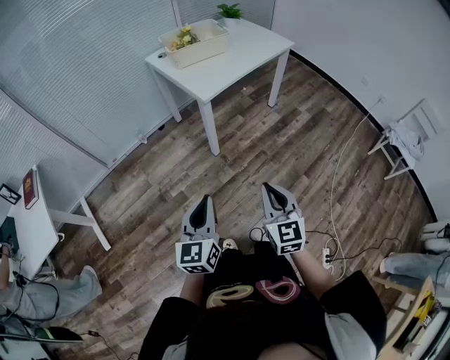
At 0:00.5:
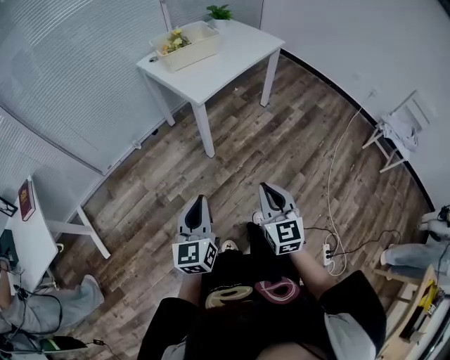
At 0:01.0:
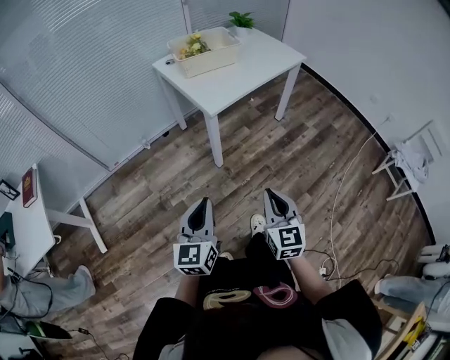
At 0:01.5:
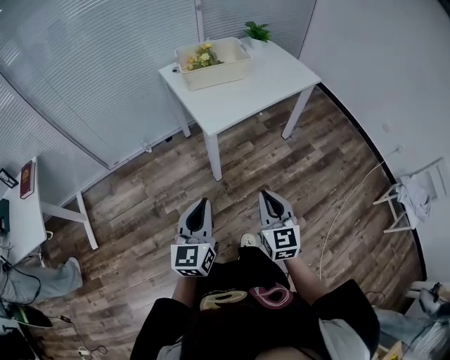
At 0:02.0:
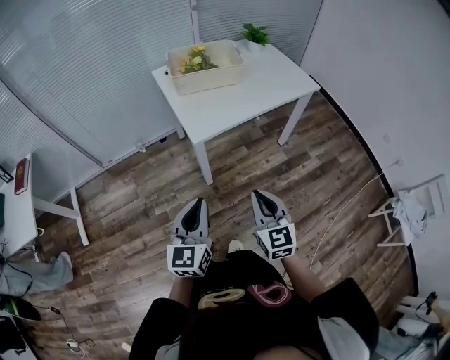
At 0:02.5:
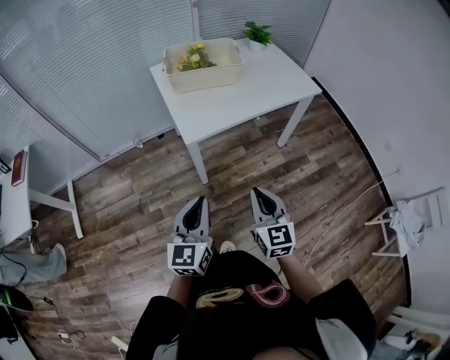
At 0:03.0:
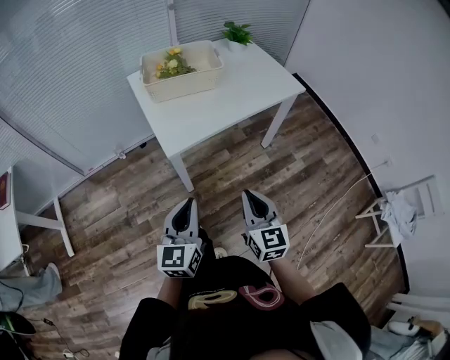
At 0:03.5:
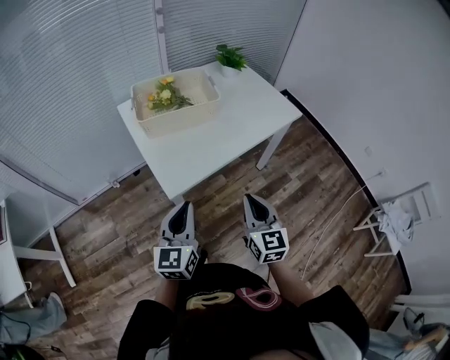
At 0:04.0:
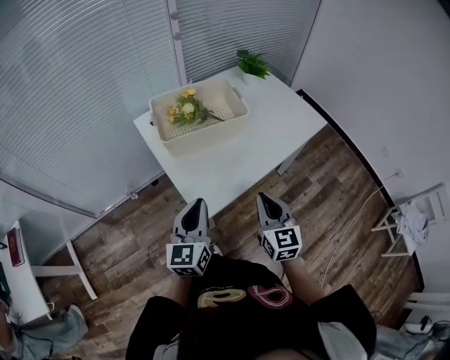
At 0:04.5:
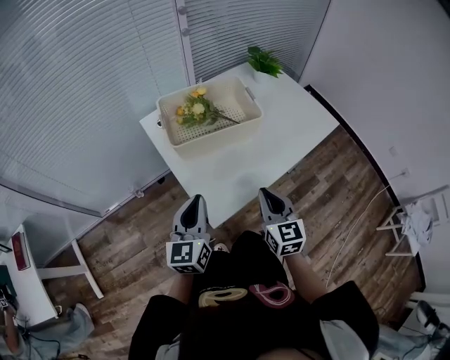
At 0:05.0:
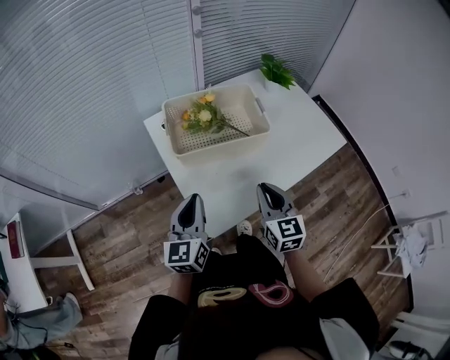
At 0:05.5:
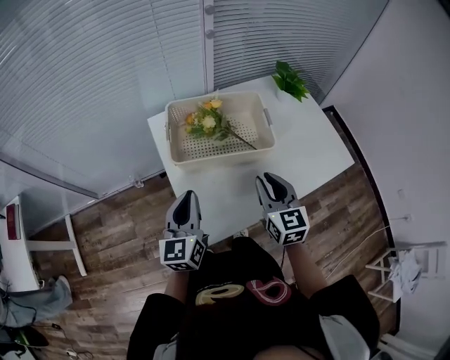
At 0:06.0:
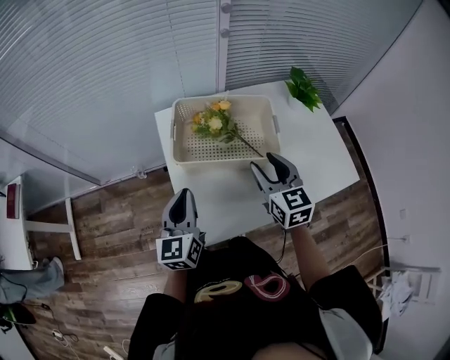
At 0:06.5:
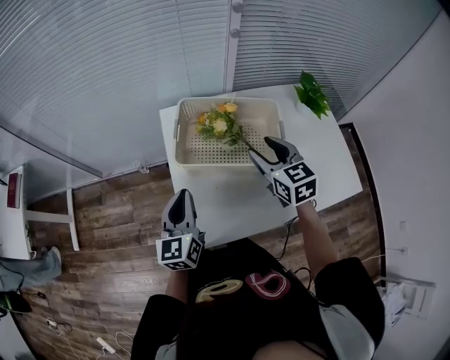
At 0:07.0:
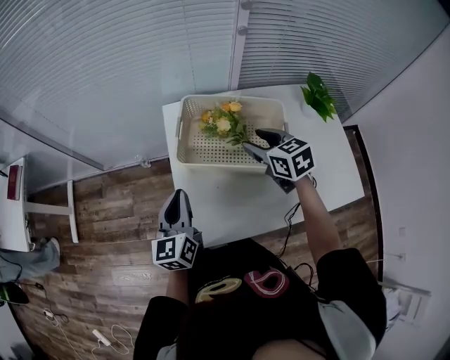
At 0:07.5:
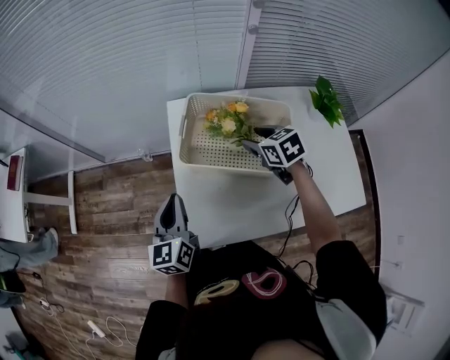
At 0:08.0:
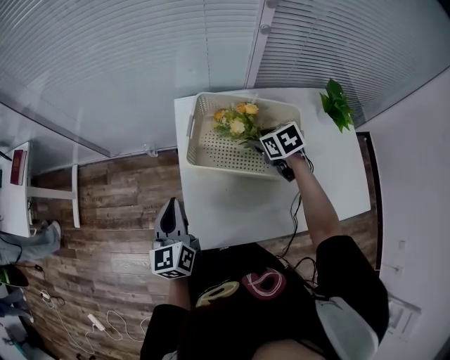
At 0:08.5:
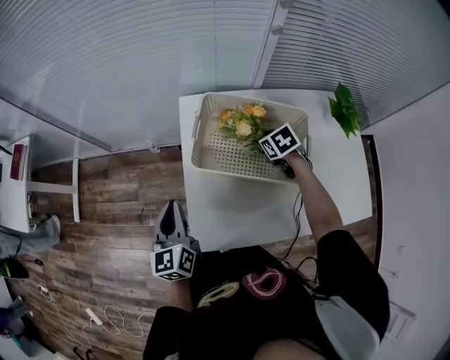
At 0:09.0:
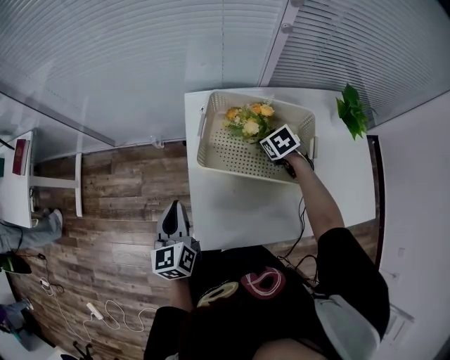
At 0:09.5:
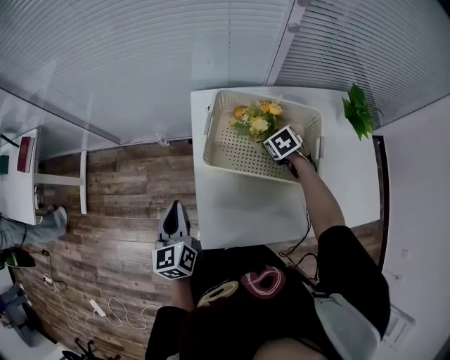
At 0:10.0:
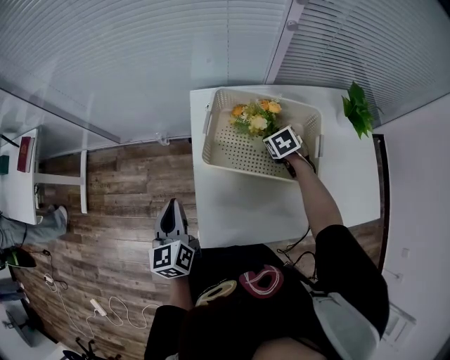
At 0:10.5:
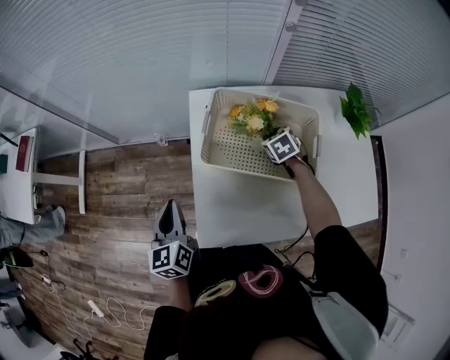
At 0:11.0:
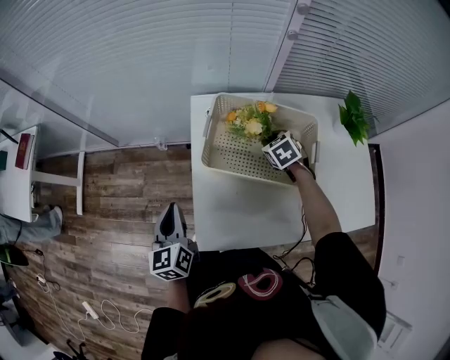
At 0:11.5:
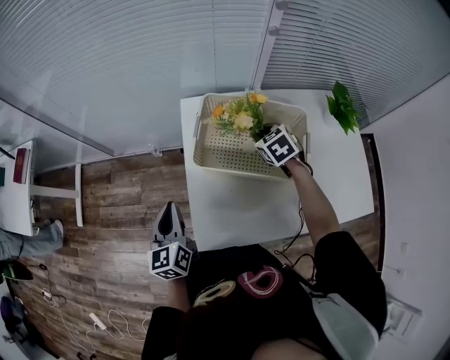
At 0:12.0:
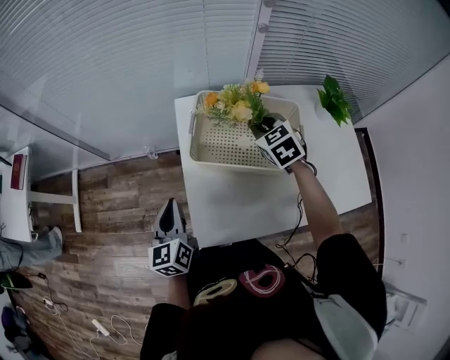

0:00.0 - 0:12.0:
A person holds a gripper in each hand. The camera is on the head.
0:00.0 - 0:02.0: The two grippers go roughly 25 cm forward and to the right.
0:02.0 - 0:04.0: Both grippers travel together forward, some 30 cm.
0:04.0 - 0:06.0: The right gripper changes place by some 25 cm, swivels some 30 degrees, and opens its fingers; the left gripper ends up roughly 15 cm from where it was, and swivels approximately 30 degrees.
0:06.0 - 0:08.0: The left gripper moves to the left, some 5 cm, while the right gripper heads forward and downward, covering some 20 cm, and tilts its fingers some 40 degrees downward.
0:08.0 - 0:10.0: The right gripper goes approximately 10 cm downward.
0:10.0 - 0:12.0: The right gripper is displaced upward by roughly 15 cm, and turns by about 30 degrees.

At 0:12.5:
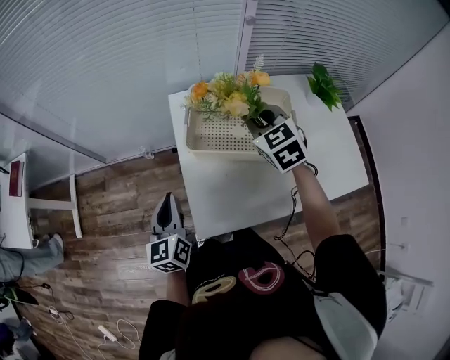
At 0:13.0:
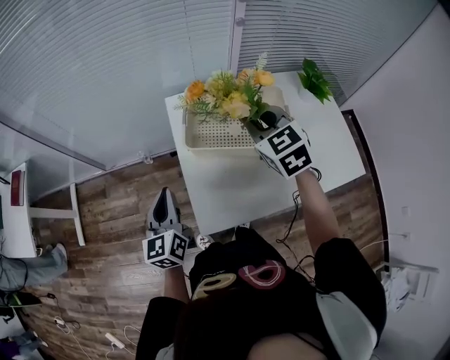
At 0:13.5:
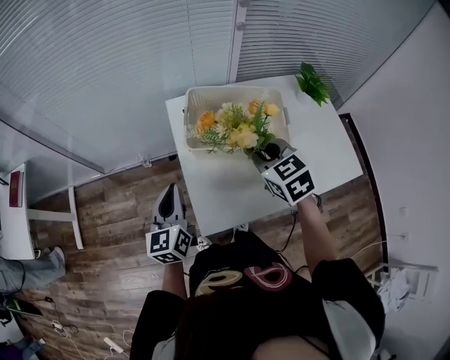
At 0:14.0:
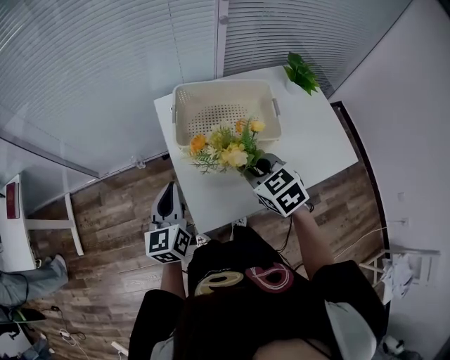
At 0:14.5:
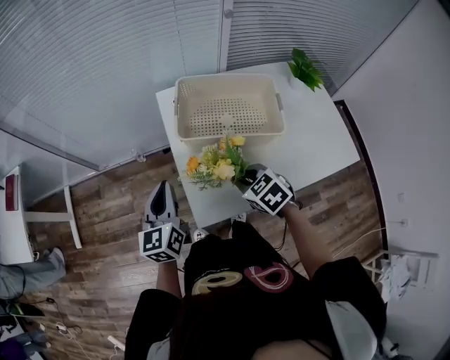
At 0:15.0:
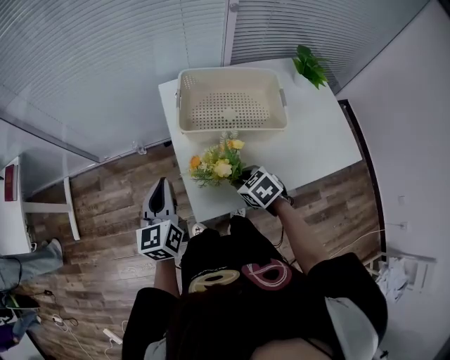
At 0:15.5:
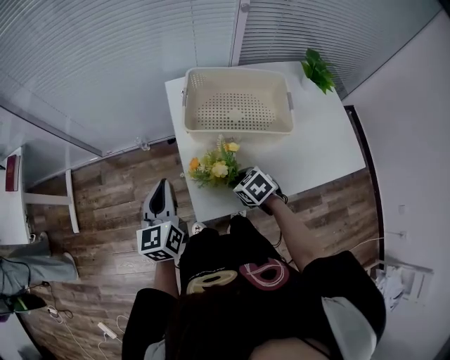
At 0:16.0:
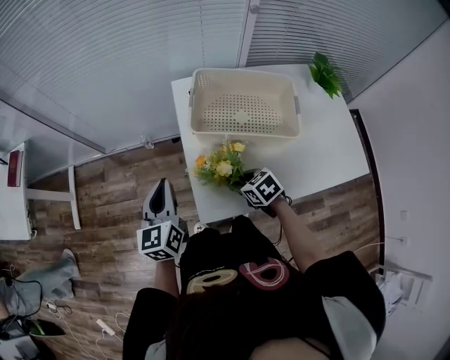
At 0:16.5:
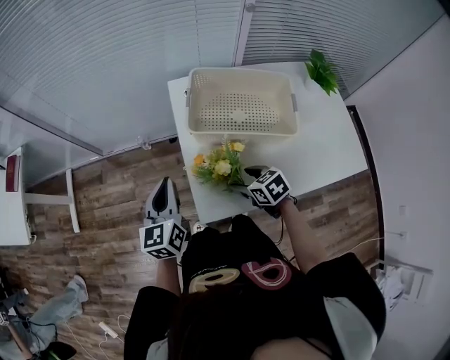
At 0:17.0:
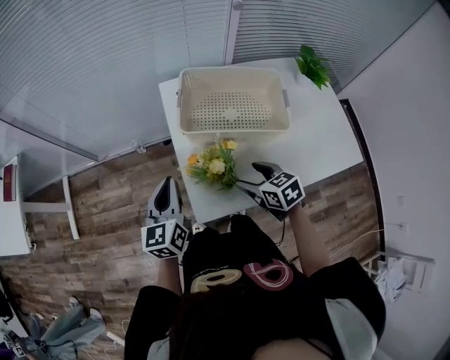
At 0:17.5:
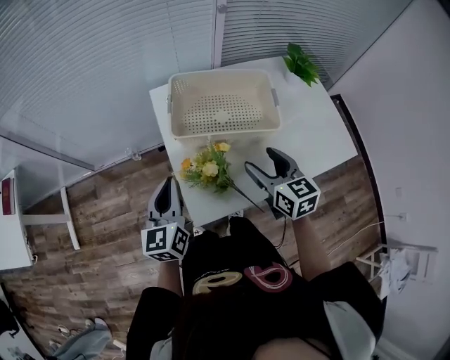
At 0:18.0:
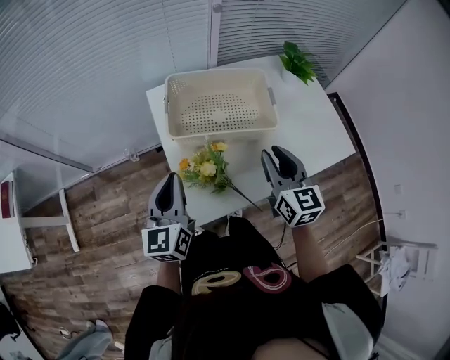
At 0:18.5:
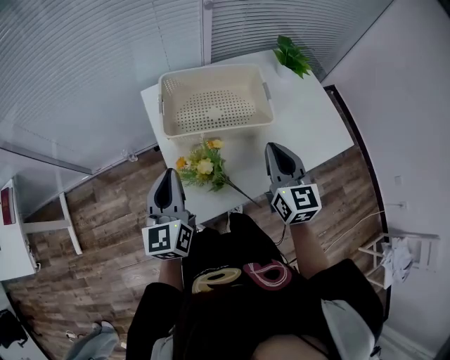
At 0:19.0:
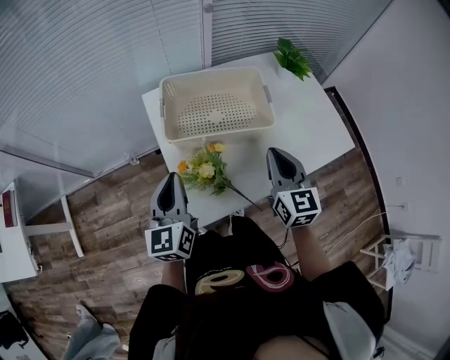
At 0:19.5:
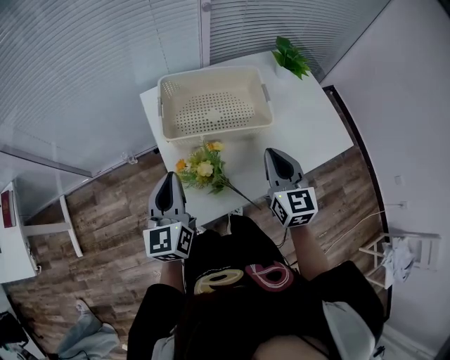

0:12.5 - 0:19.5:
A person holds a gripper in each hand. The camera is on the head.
0:12.5 - 0:14.5: The right gripper heads backward and downward, covering about 25 cm, and turns by some 30 degrees.
0:14.5 - 0:16.0: The right gripper travels downward by about 10 cm.
0:16.0 - 0:17.5: The left gripper moves to the right, some 5 cm, while the right gripper heads upward and to the right, covering about 20 cm, angles its fingers upward, by some 30 degrees, and opens up.
0:17.5 - 0:19.5: The right gripper moves roughly 5 cm, turns by some 20 degrees, and closes its fingers.

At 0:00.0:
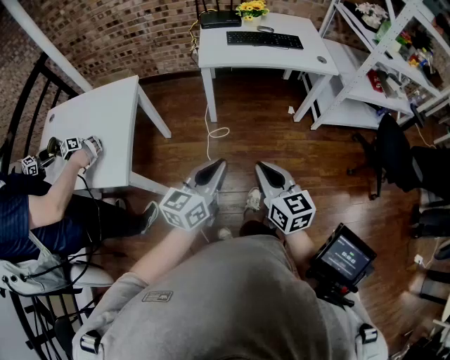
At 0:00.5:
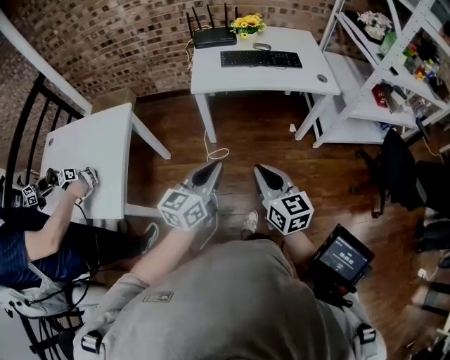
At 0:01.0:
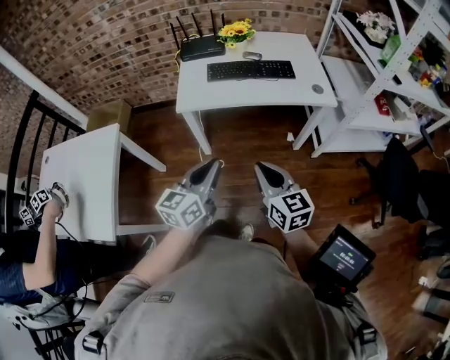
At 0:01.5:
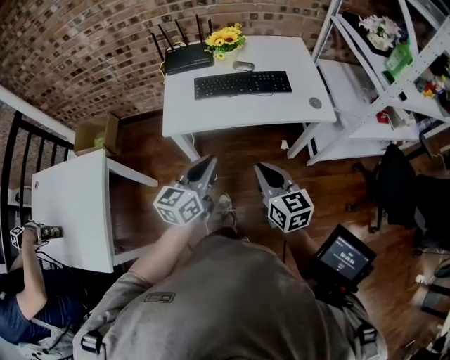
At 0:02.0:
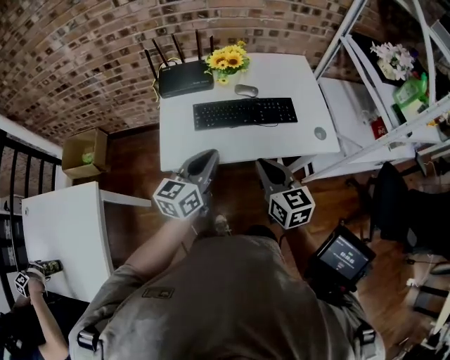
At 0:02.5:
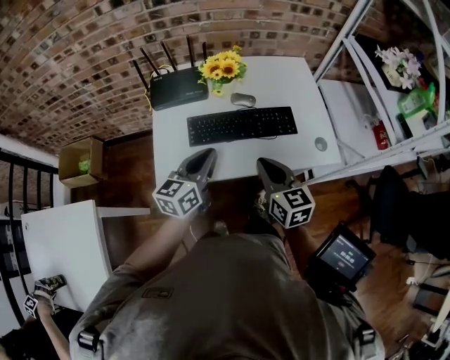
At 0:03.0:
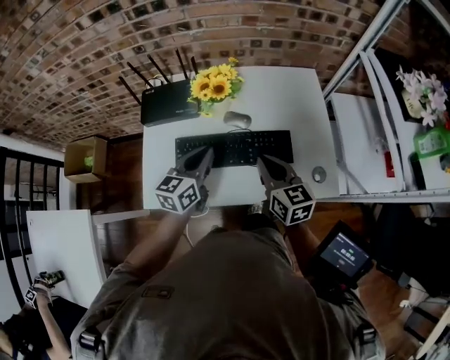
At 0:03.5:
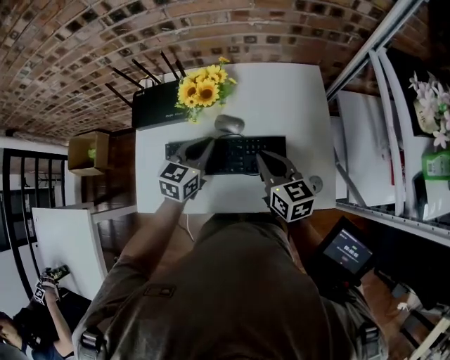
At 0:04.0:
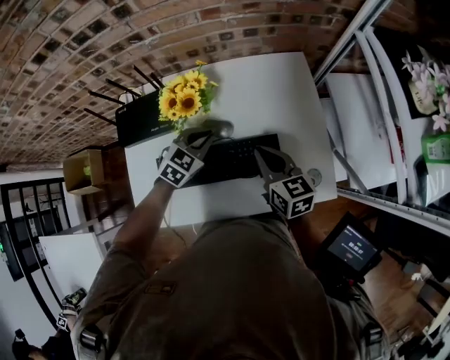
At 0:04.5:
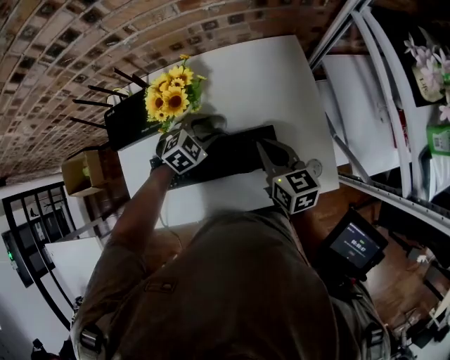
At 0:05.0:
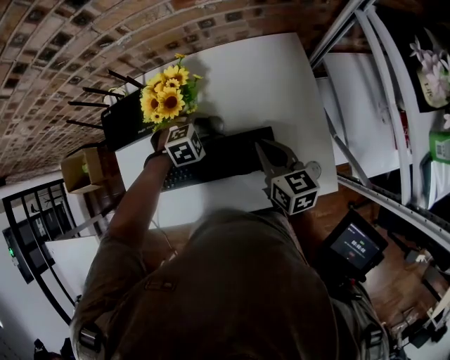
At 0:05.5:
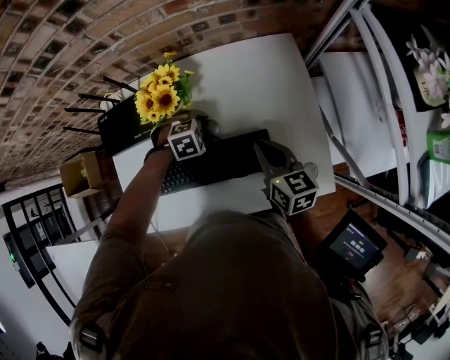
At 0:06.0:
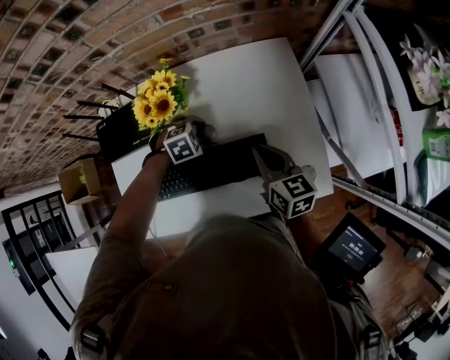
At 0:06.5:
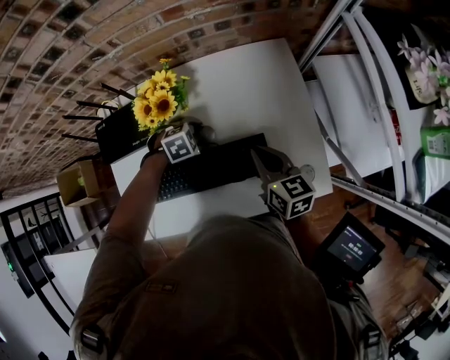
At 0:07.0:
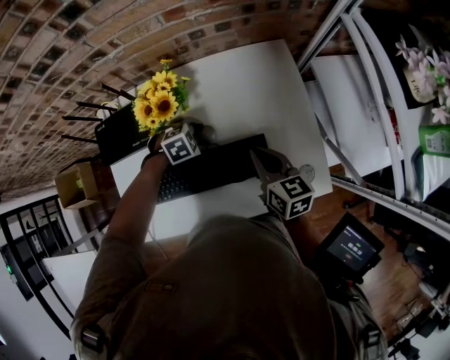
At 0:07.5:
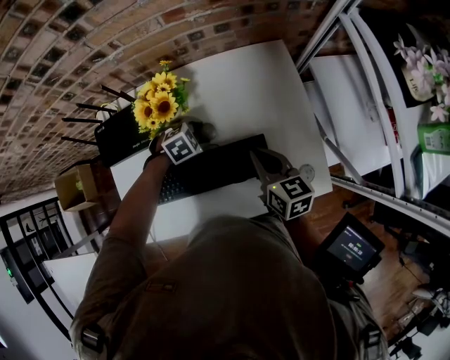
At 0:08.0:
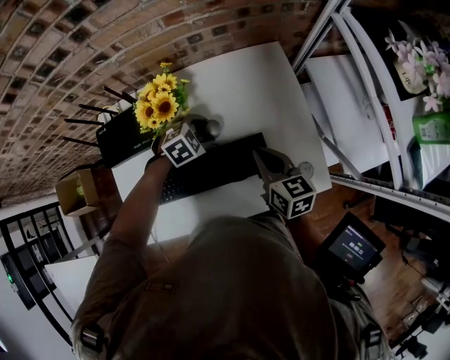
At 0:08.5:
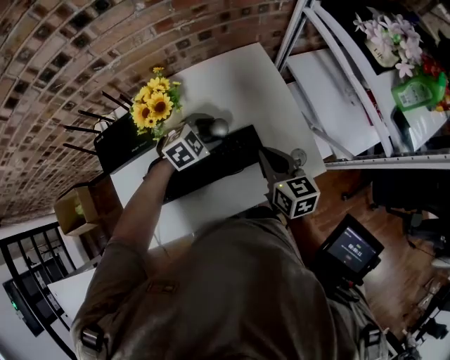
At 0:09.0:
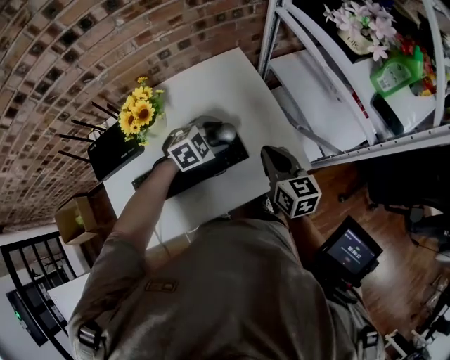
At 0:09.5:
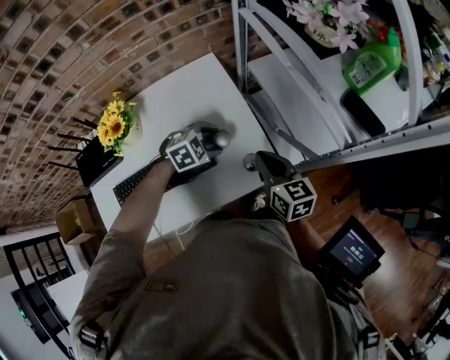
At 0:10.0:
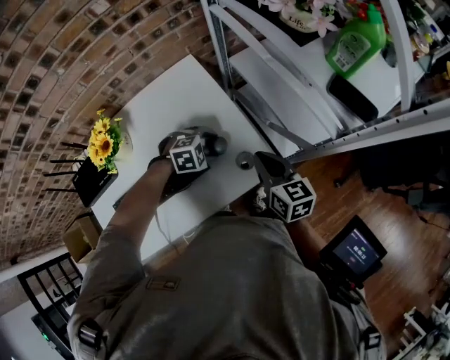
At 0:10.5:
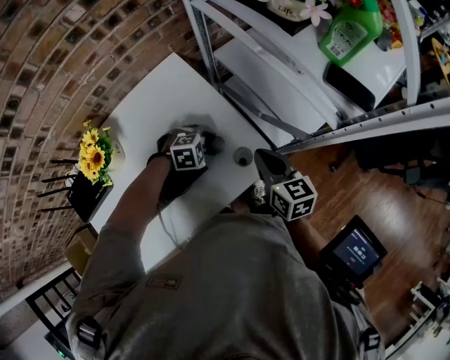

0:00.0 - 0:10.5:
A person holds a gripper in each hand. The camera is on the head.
0:00.0 - 0:02.0: Both grippers are carried forward, about 50 cm.
0:02.0 - 0:04.0: The left gripper travels forward and downward by approximately 35 cm, and points its fingers some 30 degrees further downward; the right gripper shifts some 30 cm forward and to the right.
0:04.0 - 0:06.5: The left gripper shifts approximately 10 cm downward, rotates about 40 degrees, and opens.
0:06.5 - 0:08.5: The left gripper shifts some 10 cm upward and to the right, and turns by some 20 degrees, while the right gripper changes place by about 5 cm.
0:08.5 - 0:10.5: The right gripper shifts by roughly 20 cm; the left gripper moves roughly 20 cm, and changes its angle by some 40 degrees.
